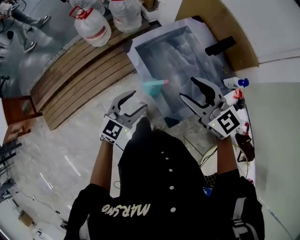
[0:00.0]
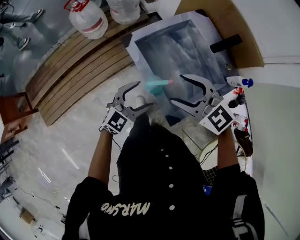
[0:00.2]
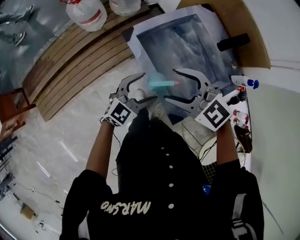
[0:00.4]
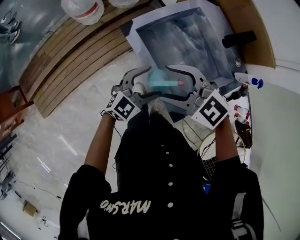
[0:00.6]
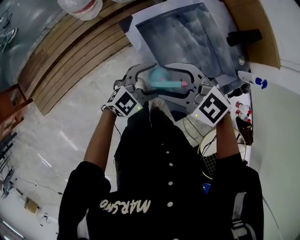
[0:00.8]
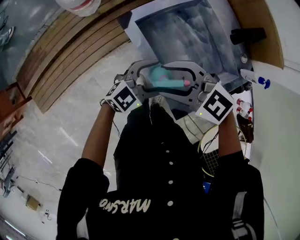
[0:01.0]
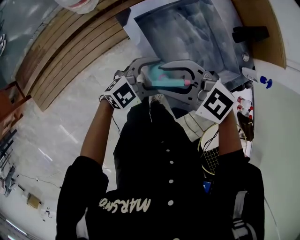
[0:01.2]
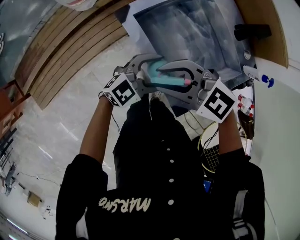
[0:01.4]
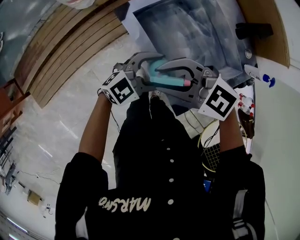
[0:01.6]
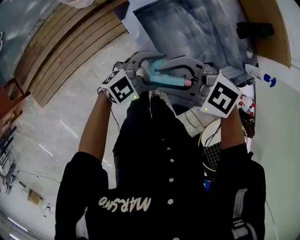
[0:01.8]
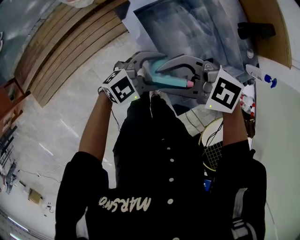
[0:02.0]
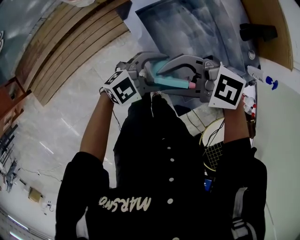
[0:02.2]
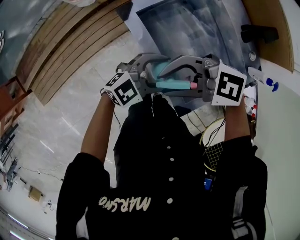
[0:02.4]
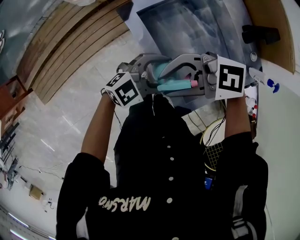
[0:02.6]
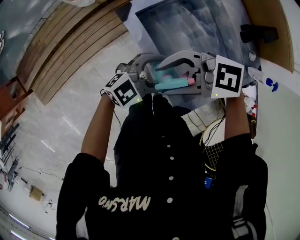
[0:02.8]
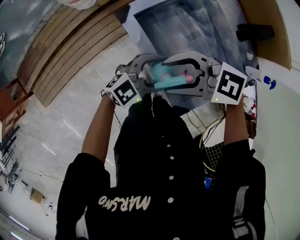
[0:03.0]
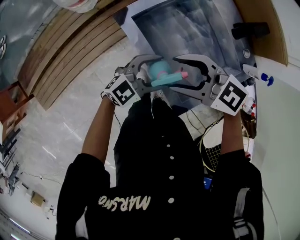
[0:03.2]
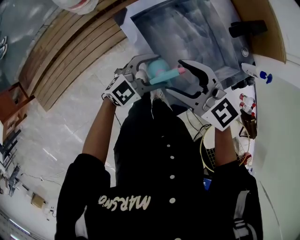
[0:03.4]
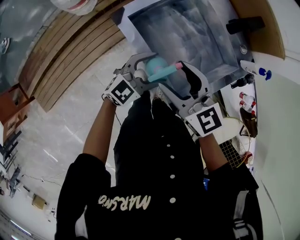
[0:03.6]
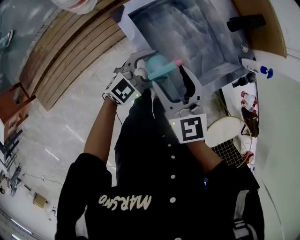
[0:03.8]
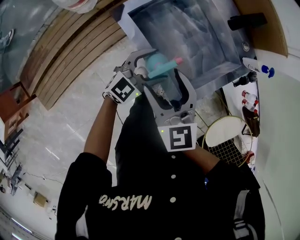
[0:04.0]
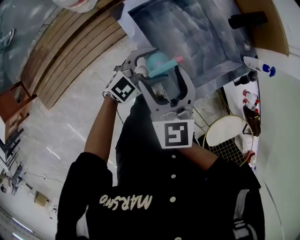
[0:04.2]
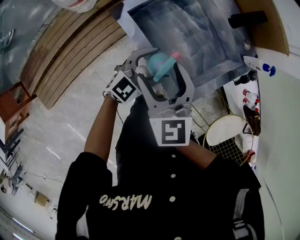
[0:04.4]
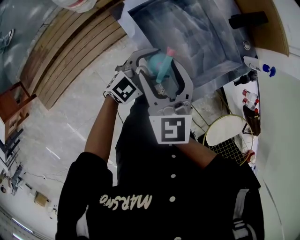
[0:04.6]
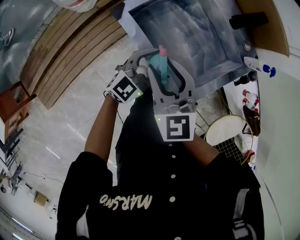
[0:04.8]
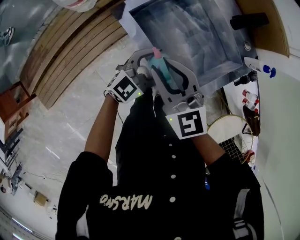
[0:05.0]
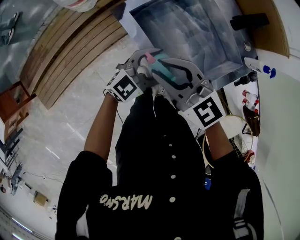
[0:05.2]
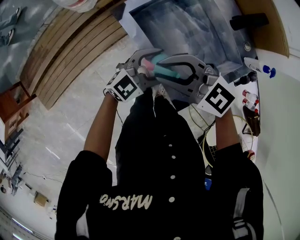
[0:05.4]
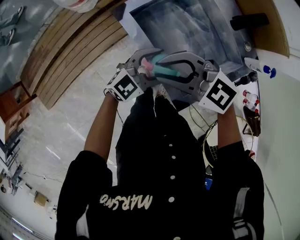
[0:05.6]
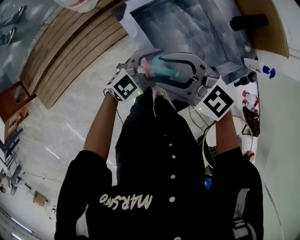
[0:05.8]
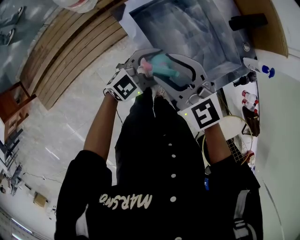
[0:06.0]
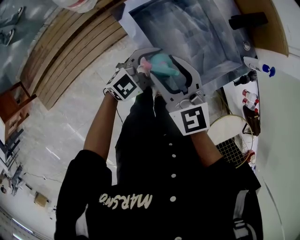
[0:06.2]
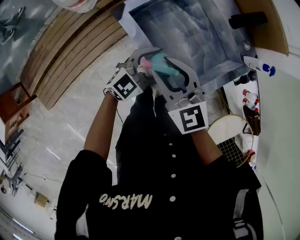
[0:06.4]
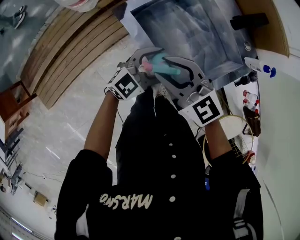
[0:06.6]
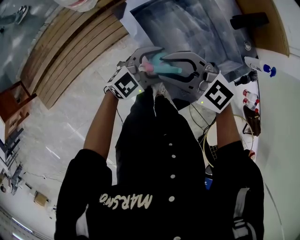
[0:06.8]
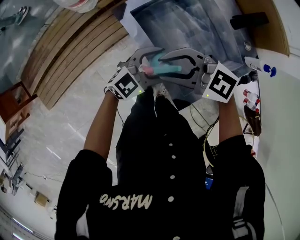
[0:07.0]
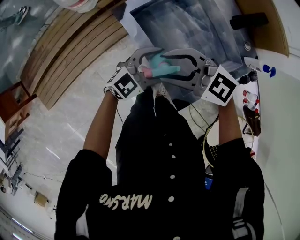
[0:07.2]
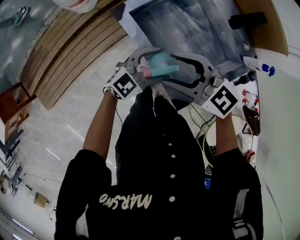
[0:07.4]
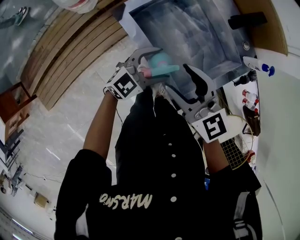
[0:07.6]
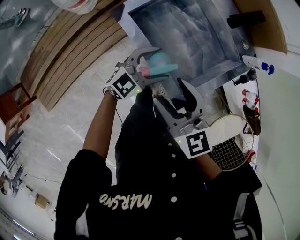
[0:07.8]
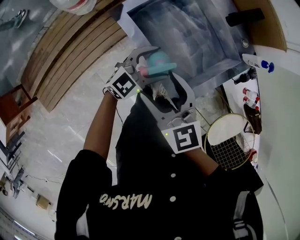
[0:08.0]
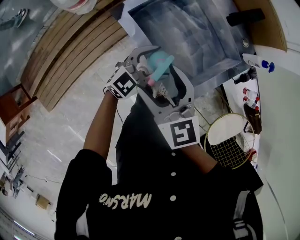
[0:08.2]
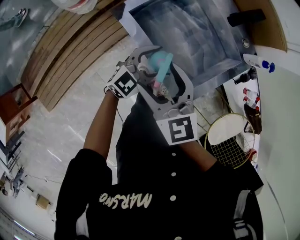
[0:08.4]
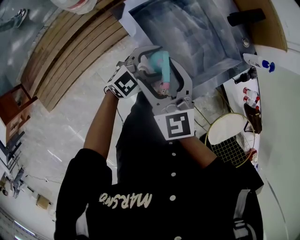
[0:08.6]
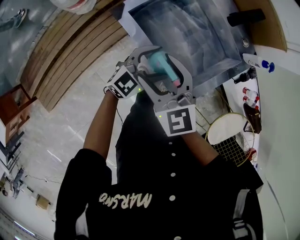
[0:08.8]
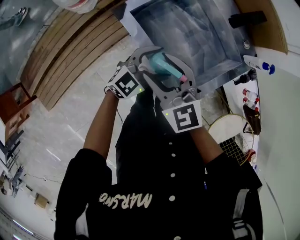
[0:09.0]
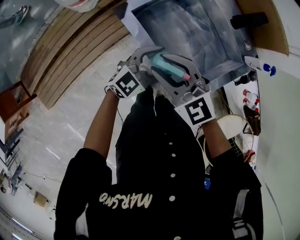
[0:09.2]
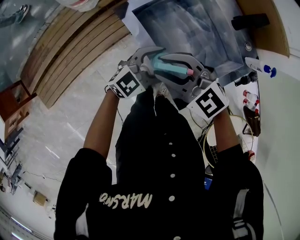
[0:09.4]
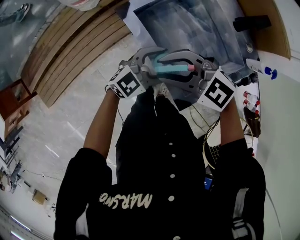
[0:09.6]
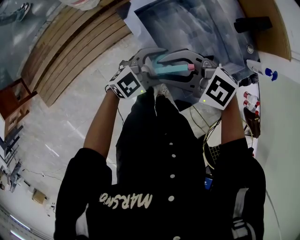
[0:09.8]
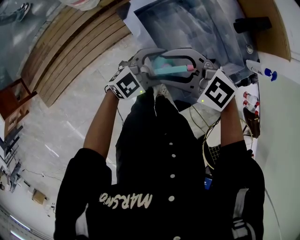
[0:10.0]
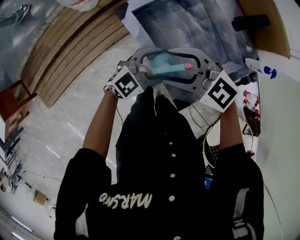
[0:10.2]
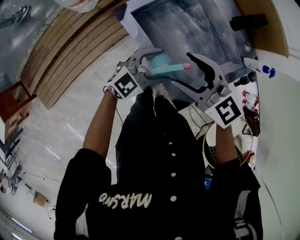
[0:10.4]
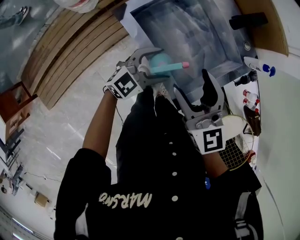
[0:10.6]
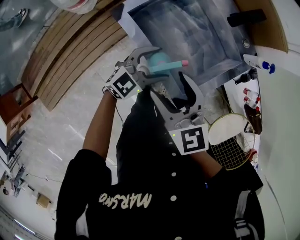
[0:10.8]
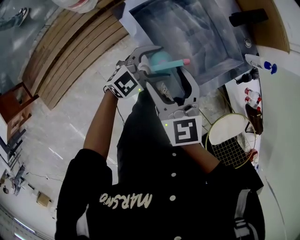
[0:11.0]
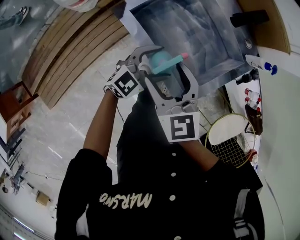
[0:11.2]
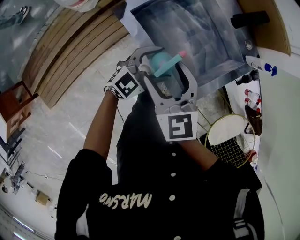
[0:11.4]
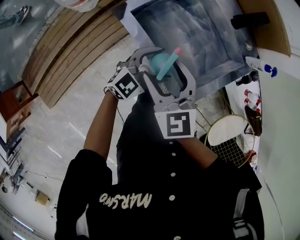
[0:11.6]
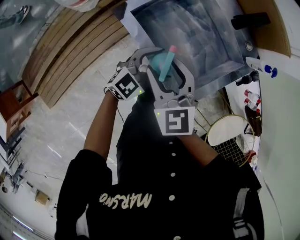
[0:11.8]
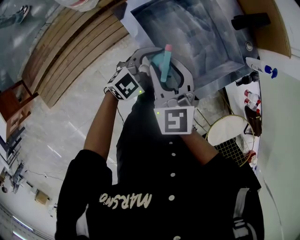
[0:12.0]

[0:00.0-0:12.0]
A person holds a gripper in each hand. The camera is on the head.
0:00.0 to 0:01.6: The left gripper shifts about 10 cm downward, and swivels about 30 degrees, while the right gripper ends up approximately 15 cm from where it was, and swivels roughly 30 degrees.
0:03.0 to 0:04.4: The right gripper changes its angle by roughly 80 degrees.
0:04.4 to 0:06.0: The right gripper rotates about 40 degrees, and closes, then opens again.
0:06.0 to 0:07.6: The right gripper moves some 5 cm, and changes its angle by about 30 degrees.
0:07.6 to 0:09.0: The right gripper travels to the left by approximately 5 cm.
0:09.0 to 0:10.4: The right gripper ends up approximately 5 cm from where it was.
0:10.4 to 0:12.0: The right gripper moves approximately 5 cm, rotates about 30 degrees, and closes its fingers.

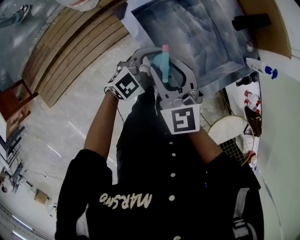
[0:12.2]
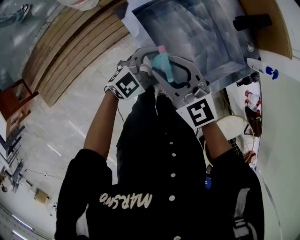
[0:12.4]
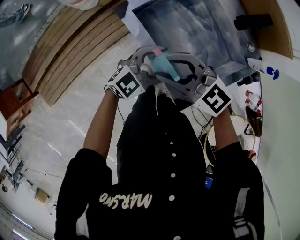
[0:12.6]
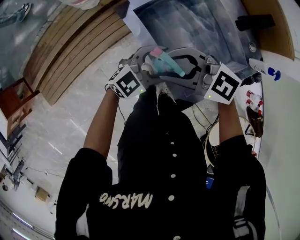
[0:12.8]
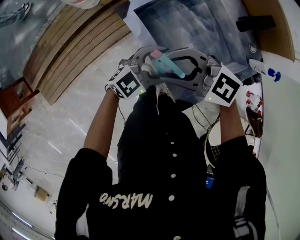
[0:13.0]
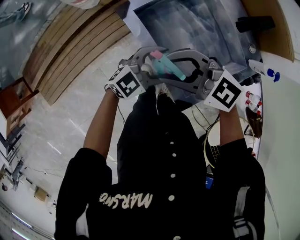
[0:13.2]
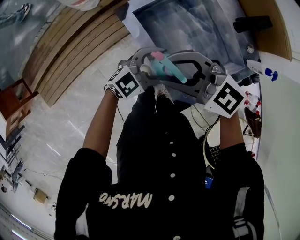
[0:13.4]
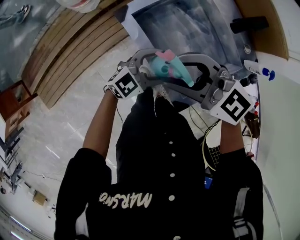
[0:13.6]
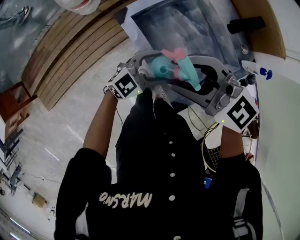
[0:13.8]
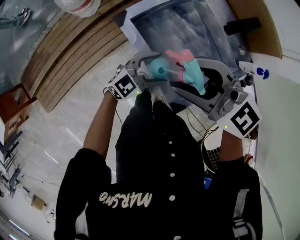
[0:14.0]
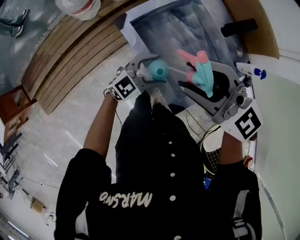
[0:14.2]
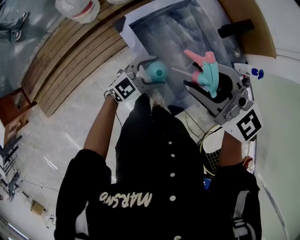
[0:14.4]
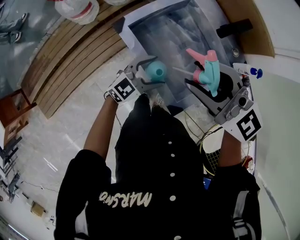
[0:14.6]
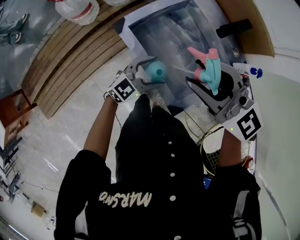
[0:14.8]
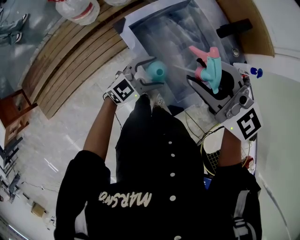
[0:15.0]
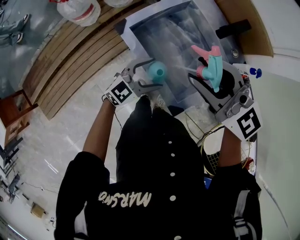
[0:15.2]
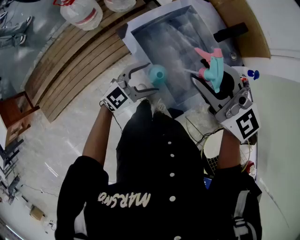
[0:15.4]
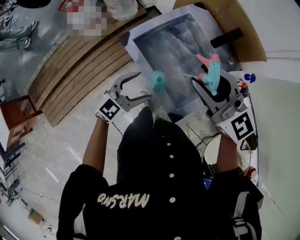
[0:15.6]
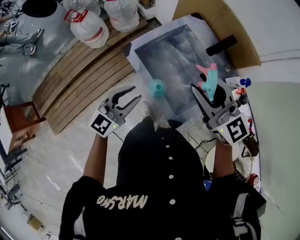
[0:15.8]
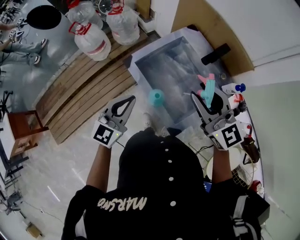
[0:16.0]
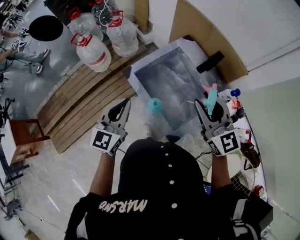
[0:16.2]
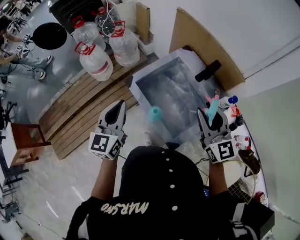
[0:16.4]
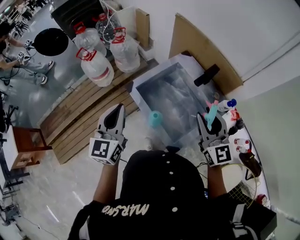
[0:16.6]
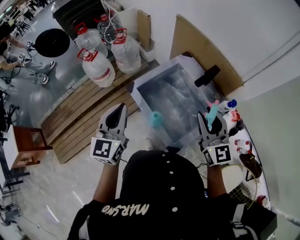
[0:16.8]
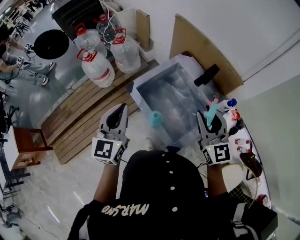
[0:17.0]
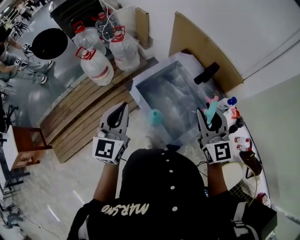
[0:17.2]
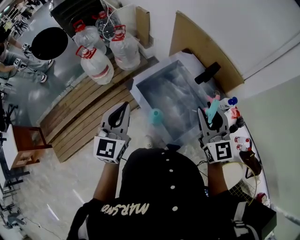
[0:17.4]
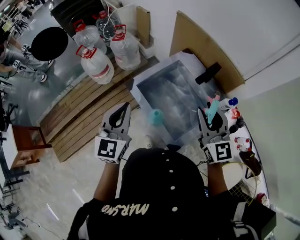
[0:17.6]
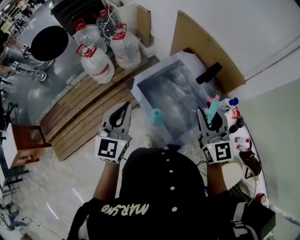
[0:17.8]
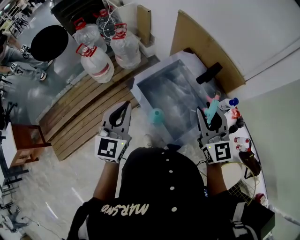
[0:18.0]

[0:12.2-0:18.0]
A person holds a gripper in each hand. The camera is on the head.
0:12.2 to 0:13.6: The right gripper heads upward, covering roughly 10 cm, and rotates some 40 degrees.
0:13.6 to 0:15.0: The right gripper heads upward, covering some 10 cm, and swivels roughly 20 degrees.
0:15.0 to 0:16.6: The left gripper goes roughly 30 cm upward and to the left, changes its angle by approximately 50 degrees, and closes. Meanwhile the right gripper goes about 15 cm to the right, and changes its angle by approximately 40 degrees.
0:16.6 to 0:18.0: The grippers make only small movements.

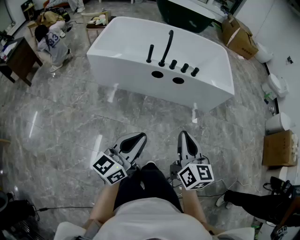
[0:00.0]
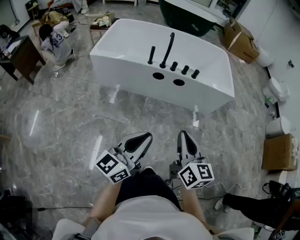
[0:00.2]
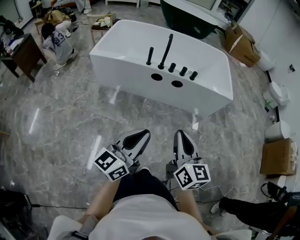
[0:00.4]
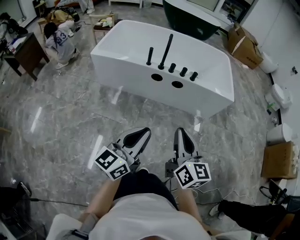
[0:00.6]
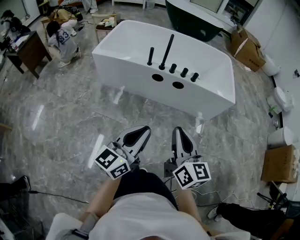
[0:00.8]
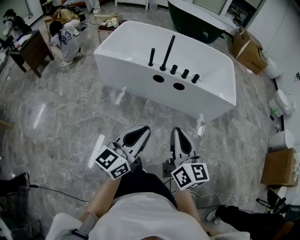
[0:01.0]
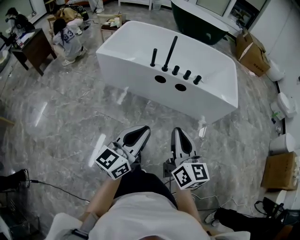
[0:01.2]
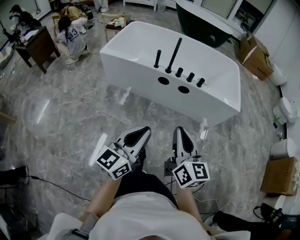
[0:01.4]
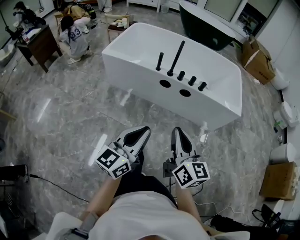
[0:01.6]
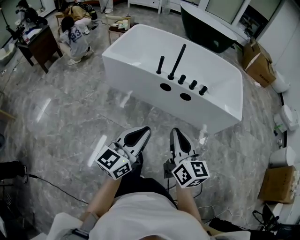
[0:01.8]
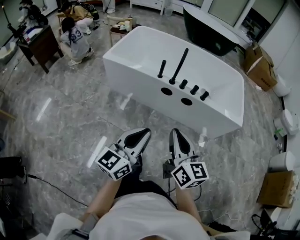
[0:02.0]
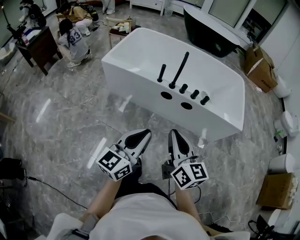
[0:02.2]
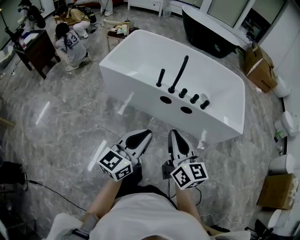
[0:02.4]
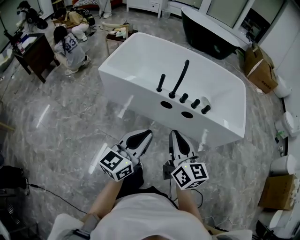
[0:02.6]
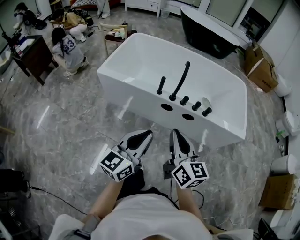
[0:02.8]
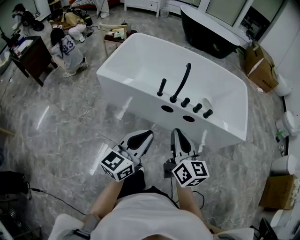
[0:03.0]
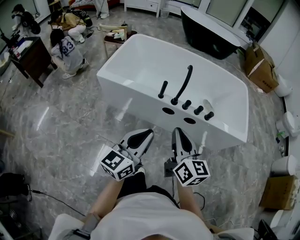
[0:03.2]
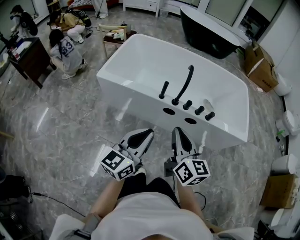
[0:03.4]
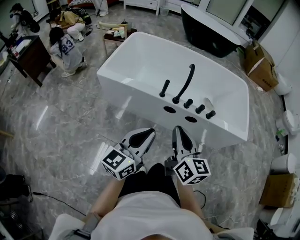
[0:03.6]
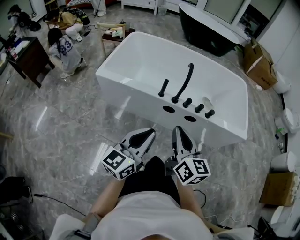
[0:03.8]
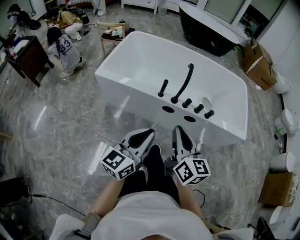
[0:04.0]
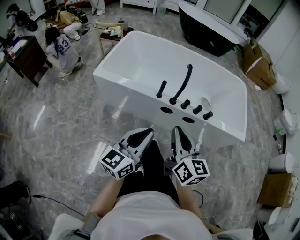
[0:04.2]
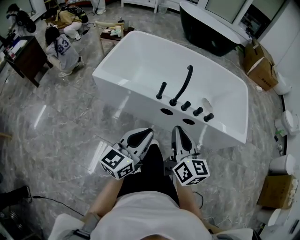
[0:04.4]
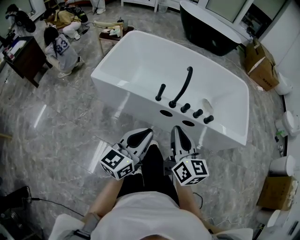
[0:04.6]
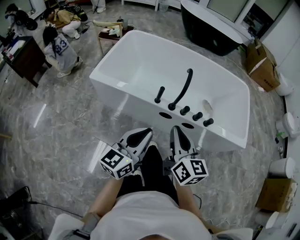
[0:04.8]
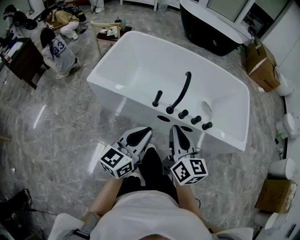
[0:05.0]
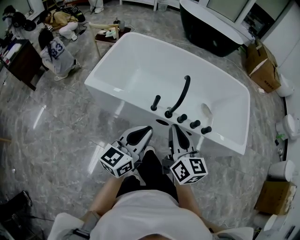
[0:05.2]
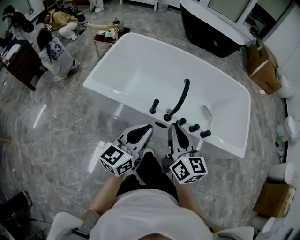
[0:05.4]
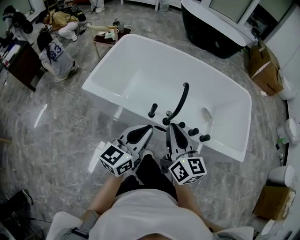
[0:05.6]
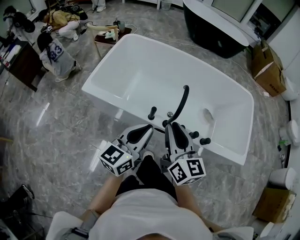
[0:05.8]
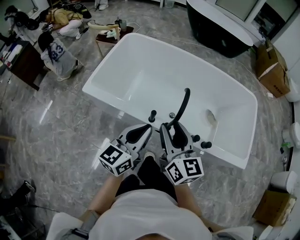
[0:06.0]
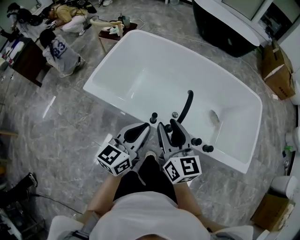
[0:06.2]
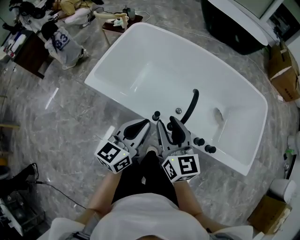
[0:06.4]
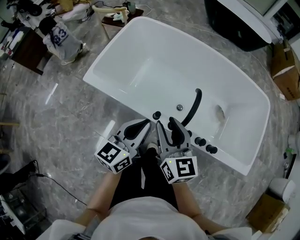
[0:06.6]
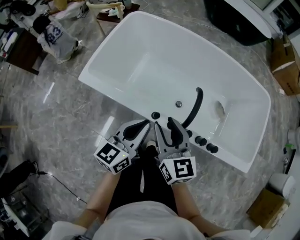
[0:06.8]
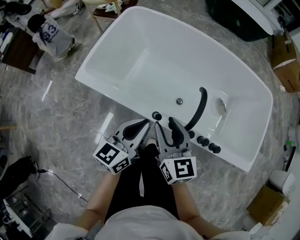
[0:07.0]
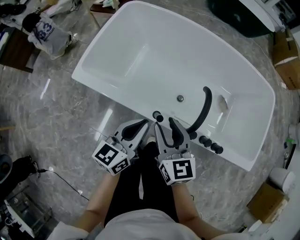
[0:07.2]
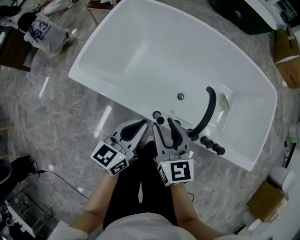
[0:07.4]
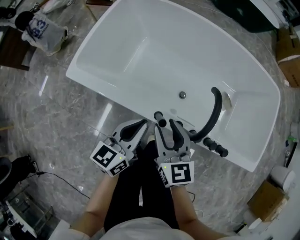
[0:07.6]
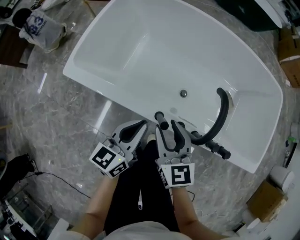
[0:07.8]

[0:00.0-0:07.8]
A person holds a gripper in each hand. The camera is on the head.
0:00.0 to 0:01.6: The left gripper moves to the right, some 5 cm. The right gripper changes place by some 5 cm.
0:01.6 to 0:03.2: The two grippers go approximately 25 cm forward.
0:03.2 to 0:04.6: Both grippers move forward, roughly 5 cm.
0:04.6 to 0:06.2: The grippers both shift forward by some 25 cm. The right gripper opens up.
0:06.2 to 0:07.8: The left gripper travels downward and forward by some 20 cm, while the right gripper moves downward, roughly 20 cm.
